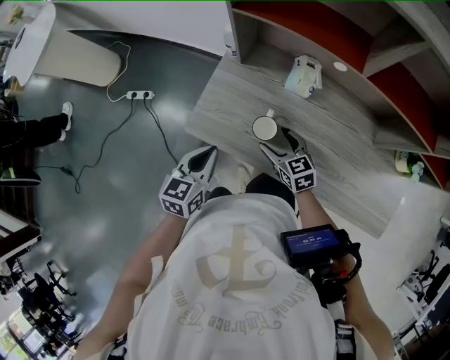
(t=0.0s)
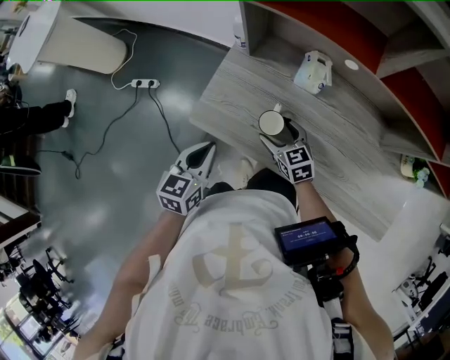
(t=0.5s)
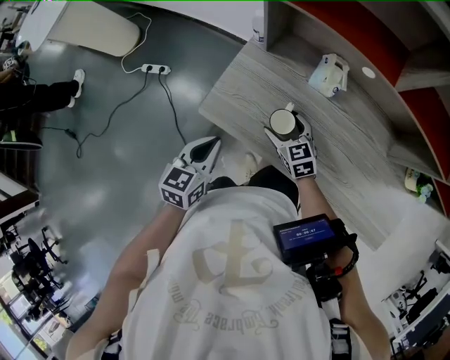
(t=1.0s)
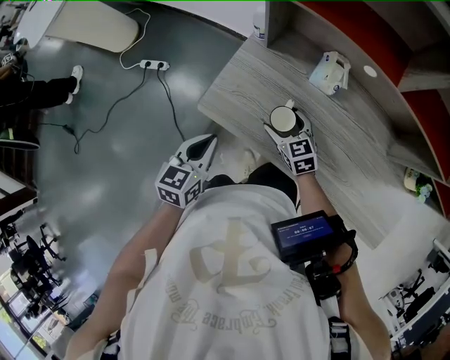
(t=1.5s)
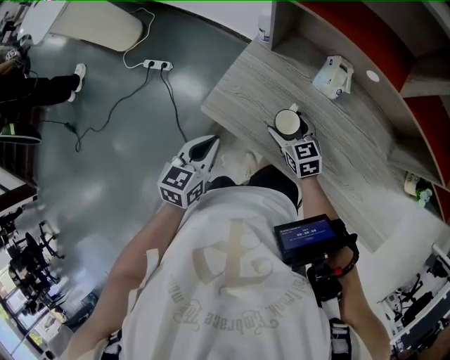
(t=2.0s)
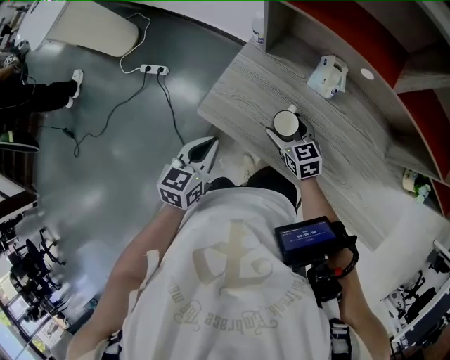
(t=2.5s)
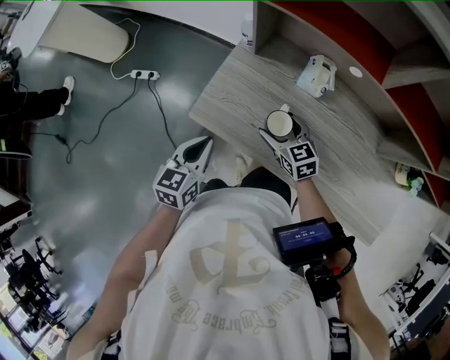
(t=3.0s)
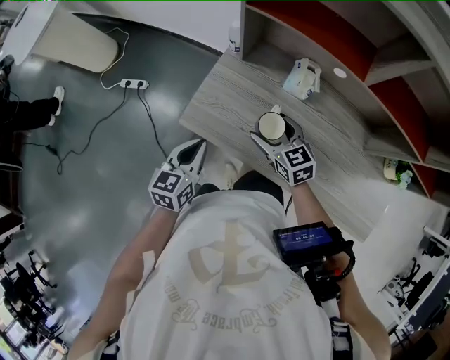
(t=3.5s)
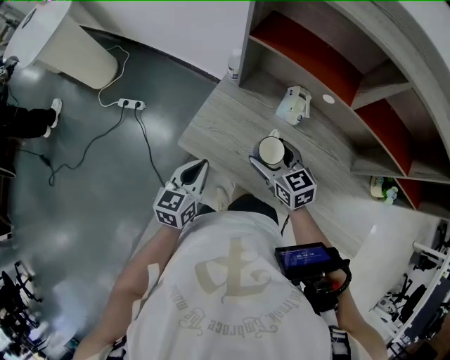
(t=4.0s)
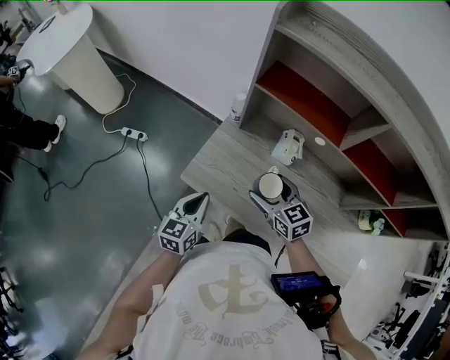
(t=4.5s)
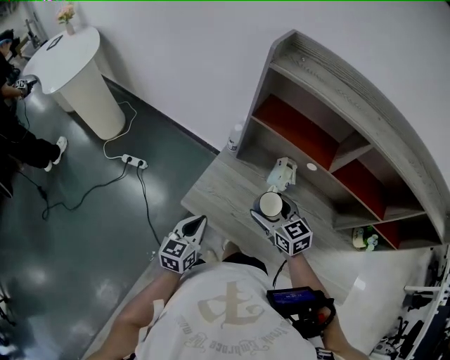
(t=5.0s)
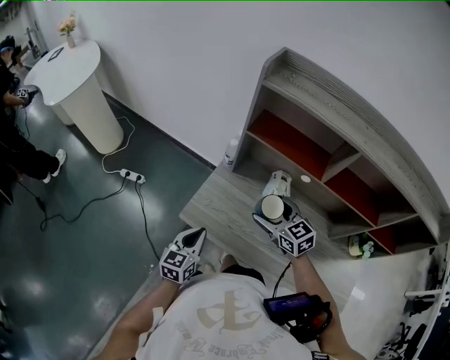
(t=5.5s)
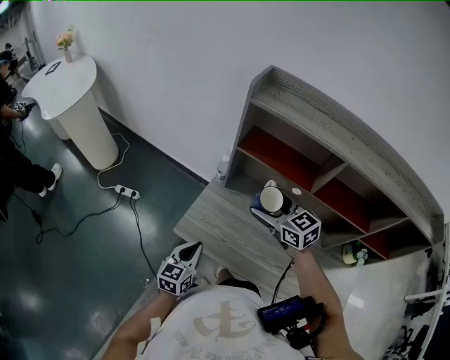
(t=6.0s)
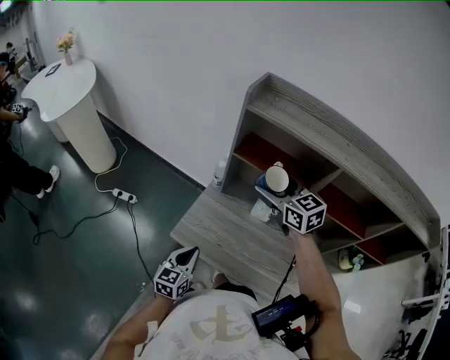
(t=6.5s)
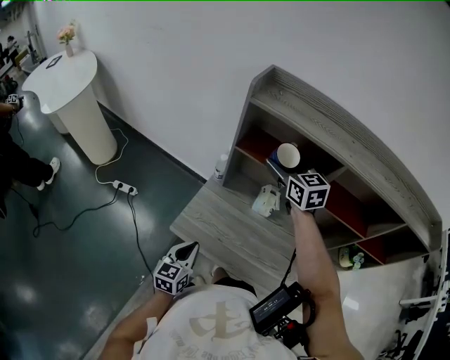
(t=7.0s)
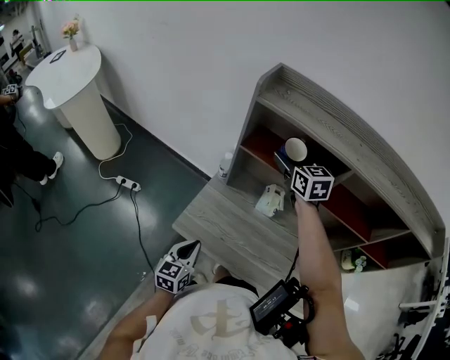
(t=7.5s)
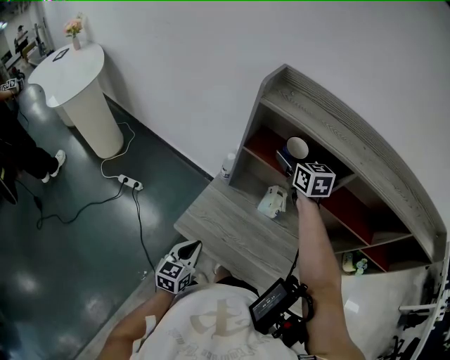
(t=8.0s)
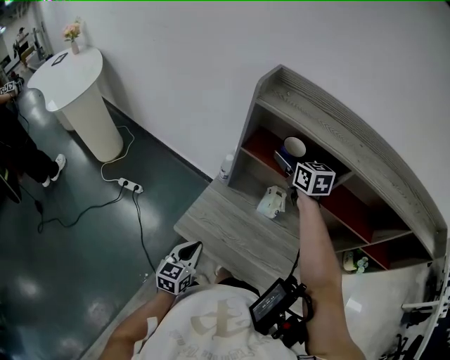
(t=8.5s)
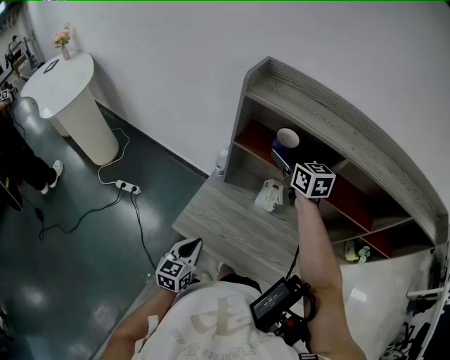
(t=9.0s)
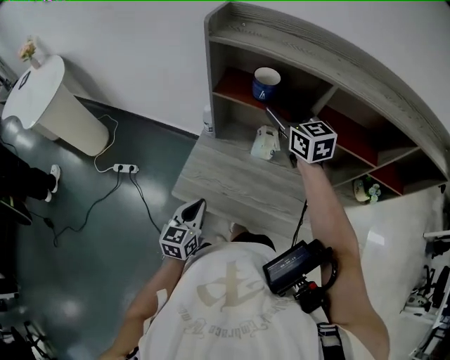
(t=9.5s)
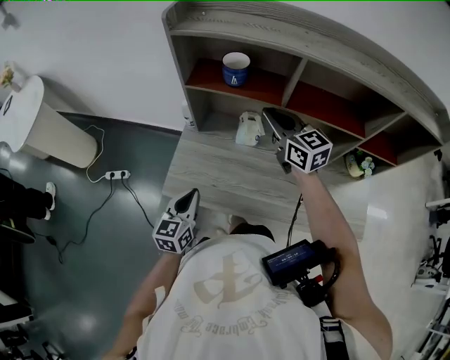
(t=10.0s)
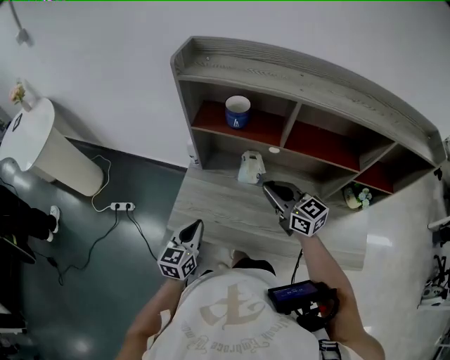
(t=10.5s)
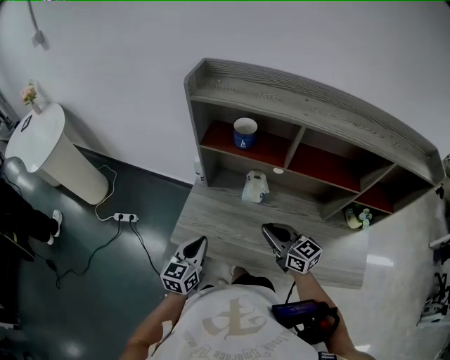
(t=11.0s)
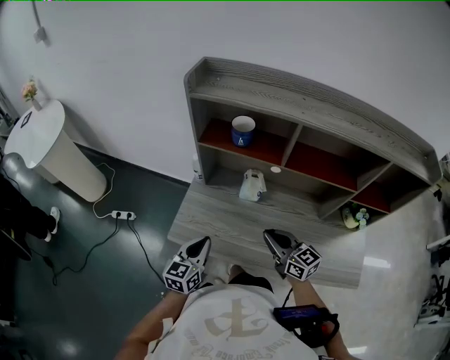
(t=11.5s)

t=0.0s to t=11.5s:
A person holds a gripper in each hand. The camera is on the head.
t=0.0s to t=2.0s: The right gripper changes place by approximately 5 cm.
t=2.0s to t=4.0s: The right gripper travels upward by approximately 15 cm.
t=4.0s to t=6.0s: The right gripper heads upward, covering some 20 cm.
t=6.0s to t=7.5s: The right gripper heads forward and to the right, covering some 20 cm, and turns by roughly 20 degrees.
t=7.5s to t=9.5s: The right gripper travels backward by approximately 10 cm, and closes its fingers.
t=9.5s to t=11.5s: The left gripper travels to the right by approximately 5 cm. Meanwhile the right gripper moves backward and downward, some 25 cm, and closes.

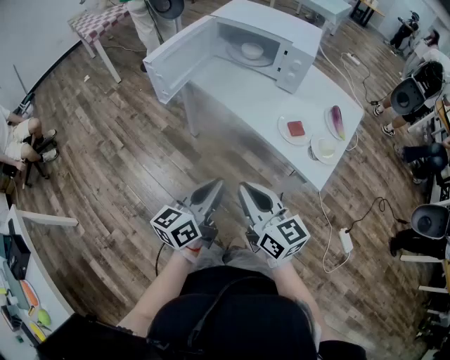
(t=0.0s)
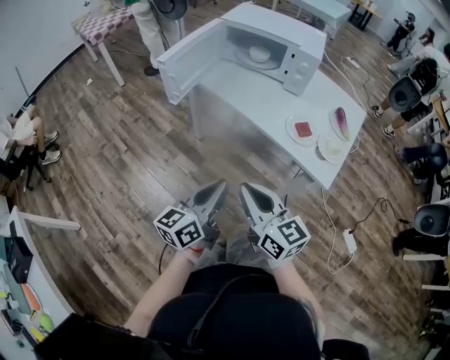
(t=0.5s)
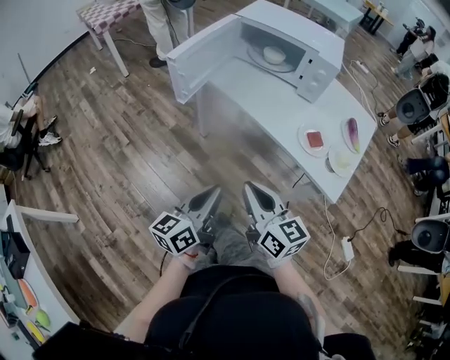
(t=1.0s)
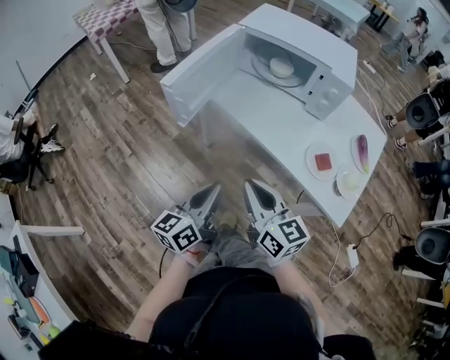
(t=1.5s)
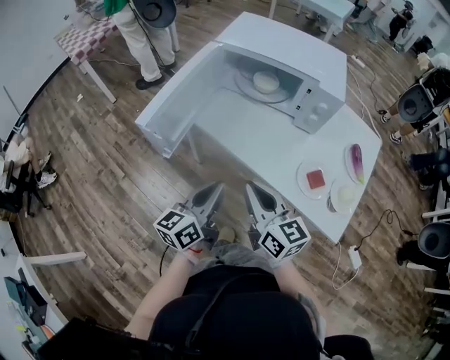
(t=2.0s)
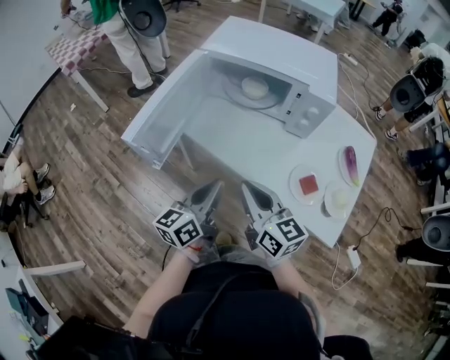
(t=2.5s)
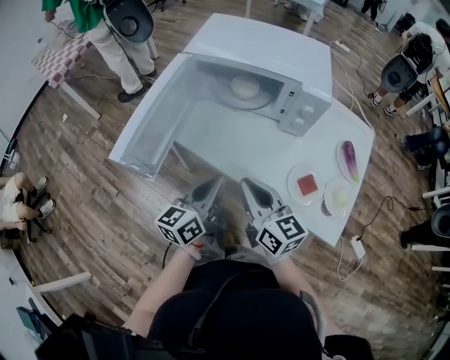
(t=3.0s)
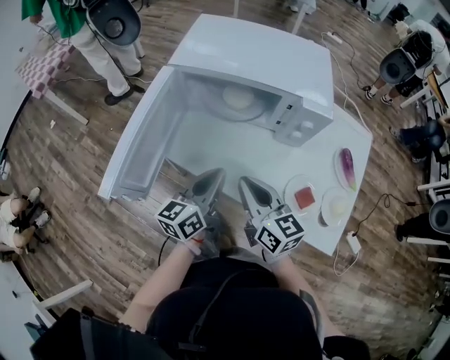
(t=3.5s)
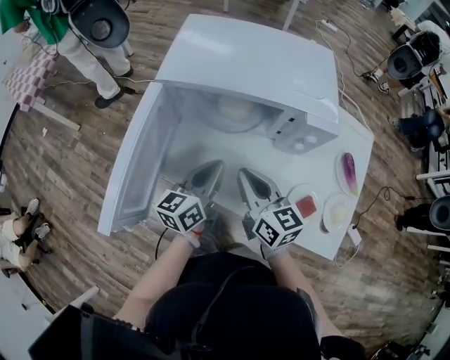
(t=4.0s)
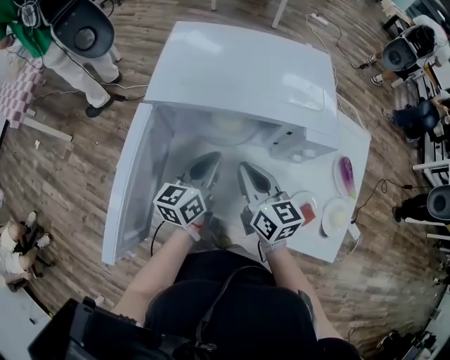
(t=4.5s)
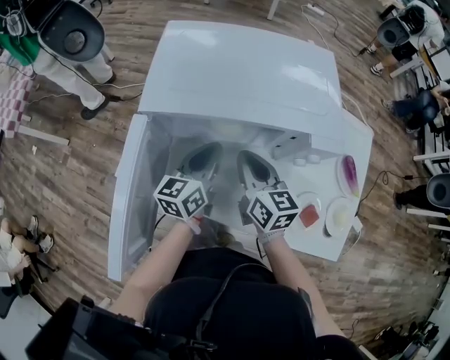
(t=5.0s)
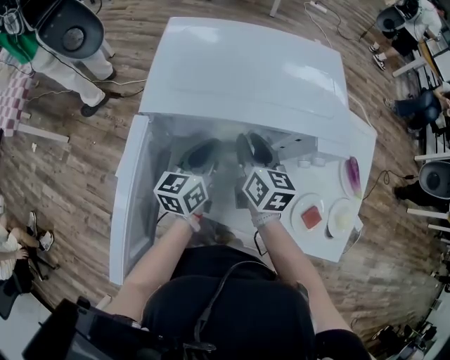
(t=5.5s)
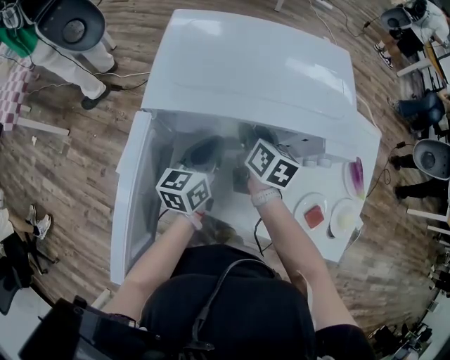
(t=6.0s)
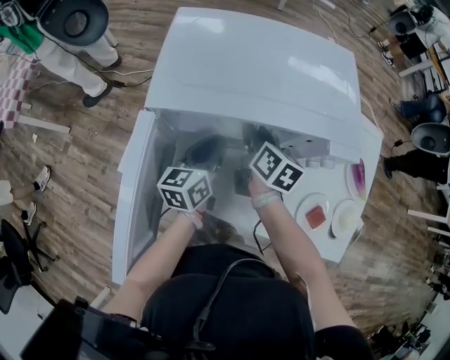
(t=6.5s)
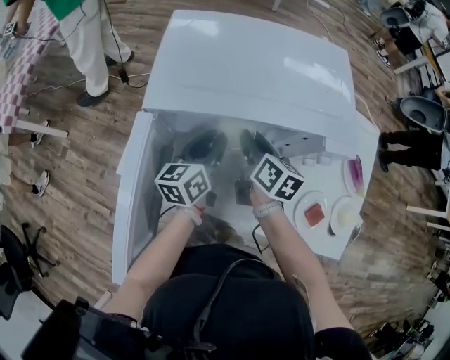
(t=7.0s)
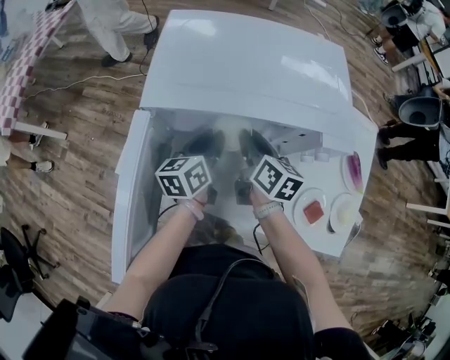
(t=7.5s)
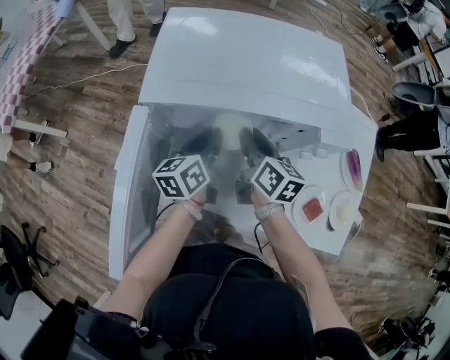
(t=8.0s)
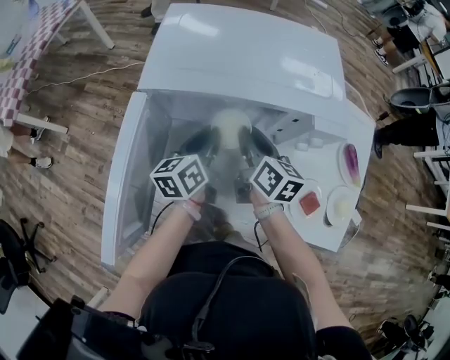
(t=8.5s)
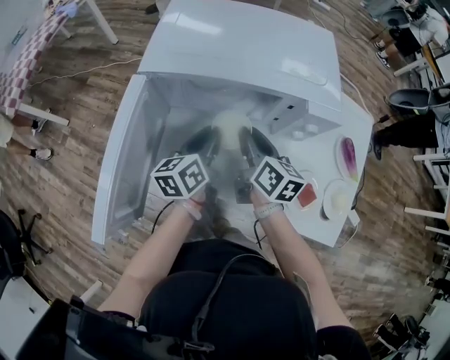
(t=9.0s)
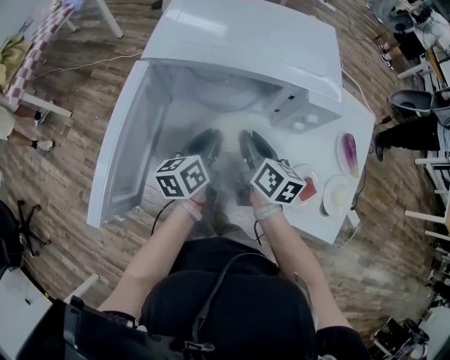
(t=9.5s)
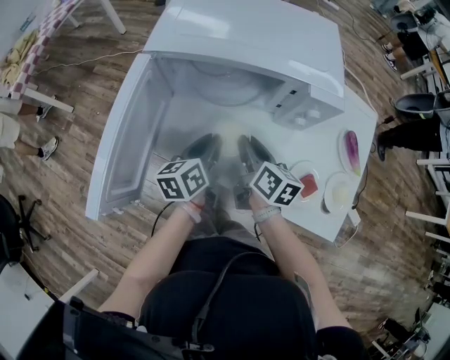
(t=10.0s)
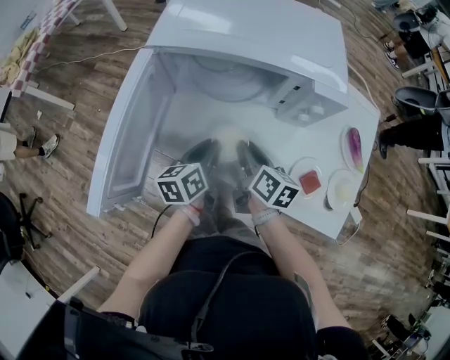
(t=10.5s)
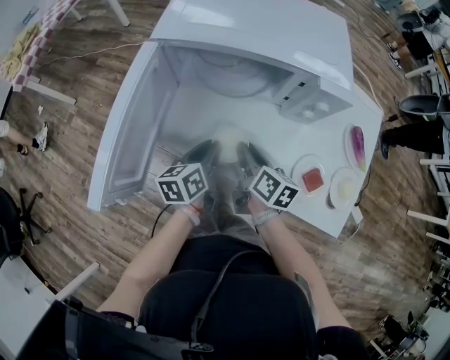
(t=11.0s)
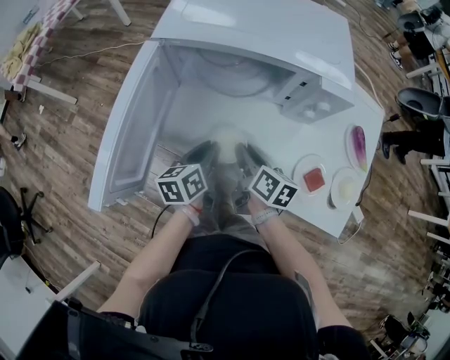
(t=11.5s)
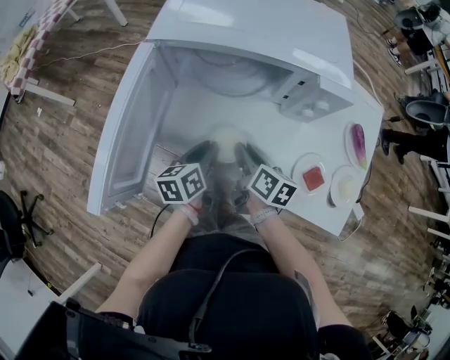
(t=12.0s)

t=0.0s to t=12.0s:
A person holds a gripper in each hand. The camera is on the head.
t=0.0s to t=2.0s: Both grippers travel together forward, approximately 25 cm.
t=2.0s to t=4.0s: The grippers both shift forward by roughly 25 cm.
t=4.0s to t=6.0s: The right gripper heads forward, covering approximately 20 cm, turns by some 30 degrees, and opens its fingers. Meanwhile the left gripper moves forward, some 15 cm.
t=6.0s to t=8.0s: The right gripper shifts by approximately 5 cm.
t=8.0s to t=10.0s: The two grippers go some 10 cm backward.
t=10.0s to t=12.0s: The right gripper moves about 5 cm, while the left gripper ends up approximately 5 cm from where it was.

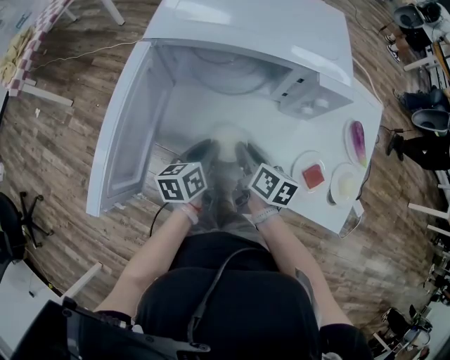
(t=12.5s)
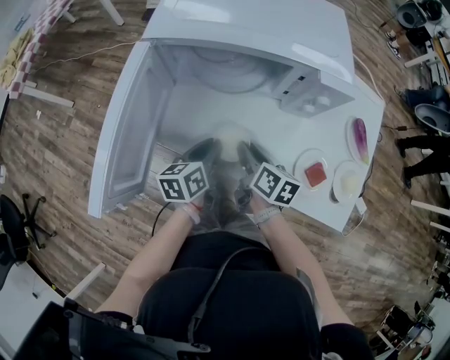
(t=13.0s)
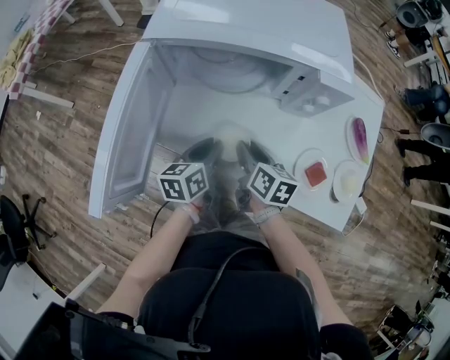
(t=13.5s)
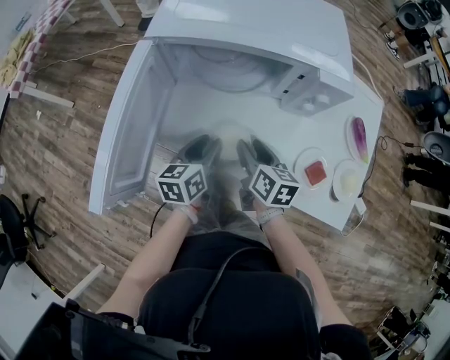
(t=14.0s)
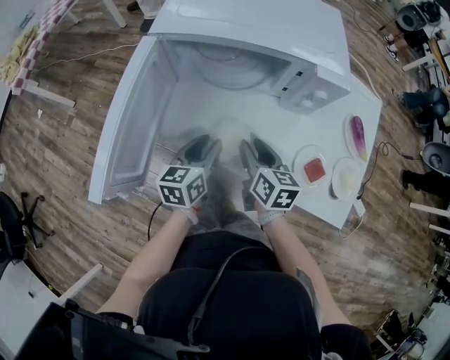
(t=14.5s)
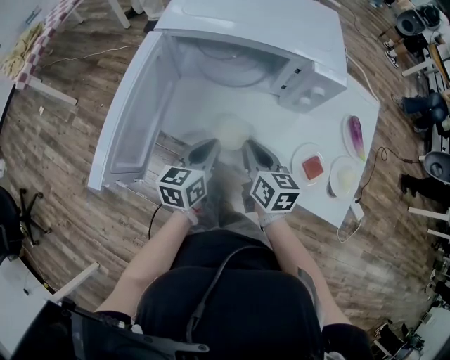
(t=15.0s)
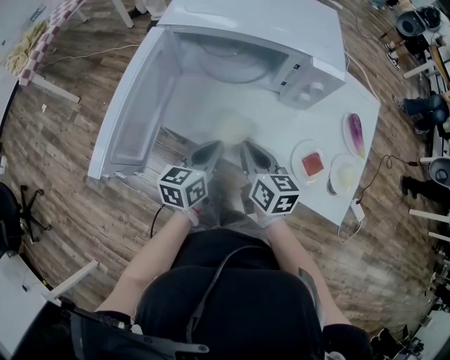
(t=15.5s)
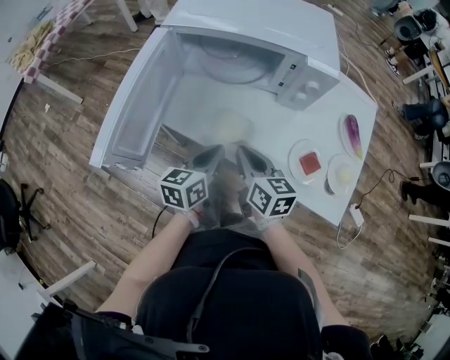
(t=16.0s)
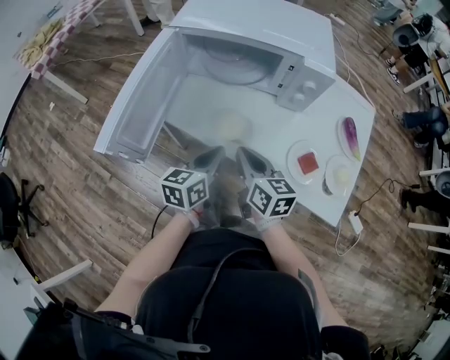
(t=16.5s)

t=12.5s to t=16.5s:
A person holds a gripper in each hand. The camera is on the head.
t=12.5s to t=14.5s: The right gripper changes its angle by approximately 20 degrees.
t=14.5s to t=16.5s: The grippers both shift backward by roughly 10 cm. The right gripper closes its fingers; the left gripper closes its fingers.
